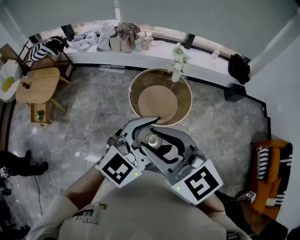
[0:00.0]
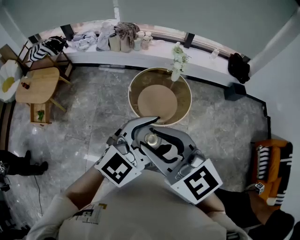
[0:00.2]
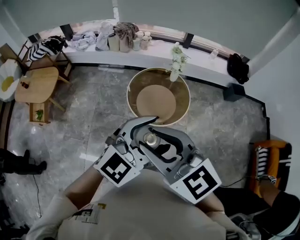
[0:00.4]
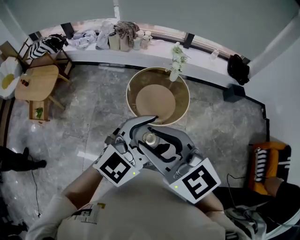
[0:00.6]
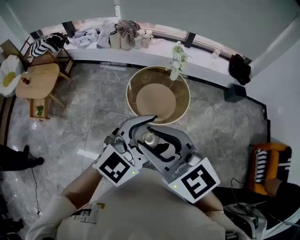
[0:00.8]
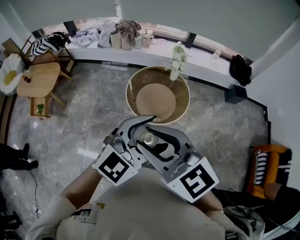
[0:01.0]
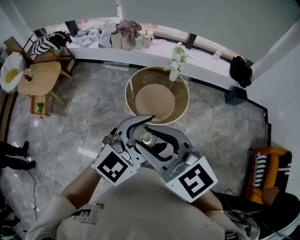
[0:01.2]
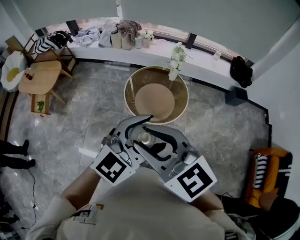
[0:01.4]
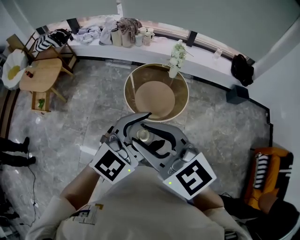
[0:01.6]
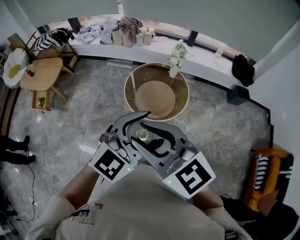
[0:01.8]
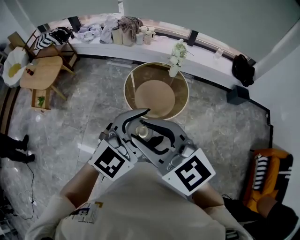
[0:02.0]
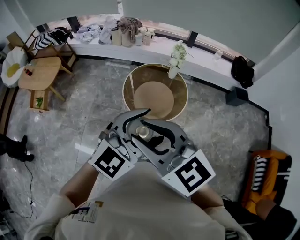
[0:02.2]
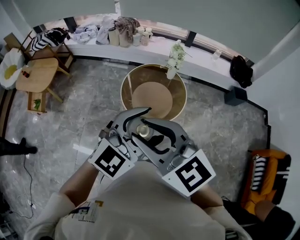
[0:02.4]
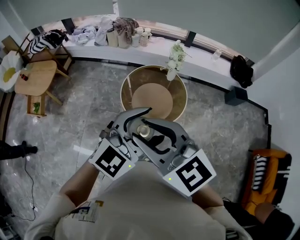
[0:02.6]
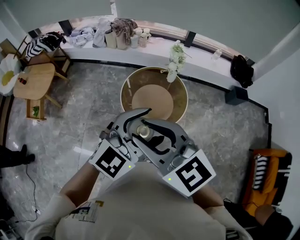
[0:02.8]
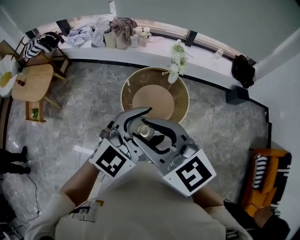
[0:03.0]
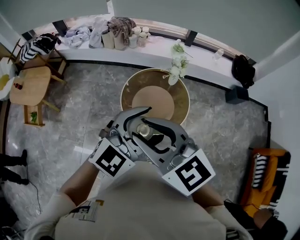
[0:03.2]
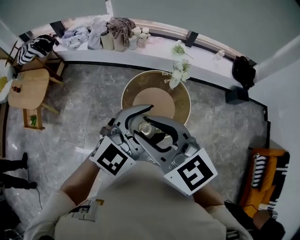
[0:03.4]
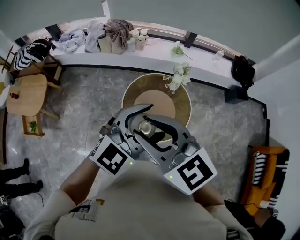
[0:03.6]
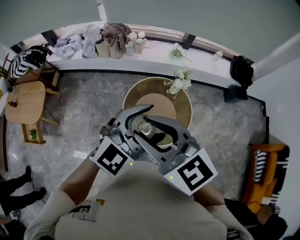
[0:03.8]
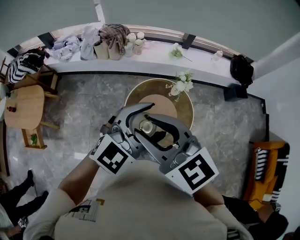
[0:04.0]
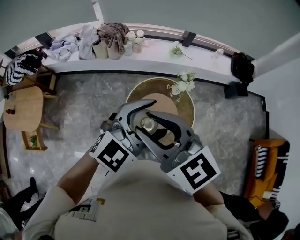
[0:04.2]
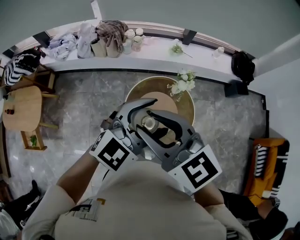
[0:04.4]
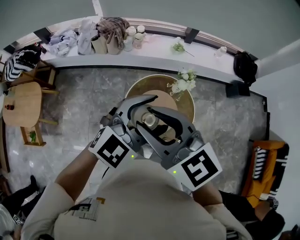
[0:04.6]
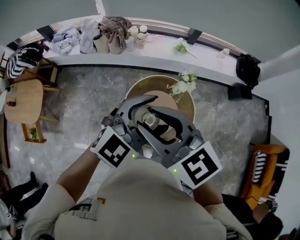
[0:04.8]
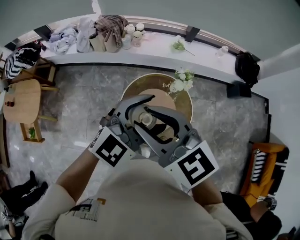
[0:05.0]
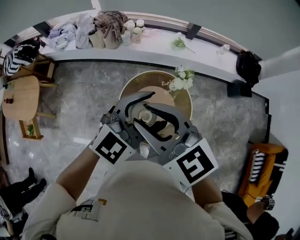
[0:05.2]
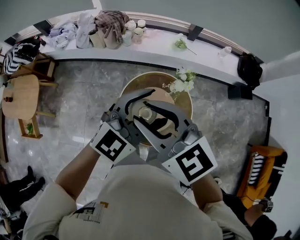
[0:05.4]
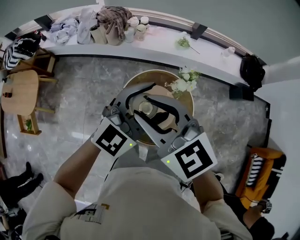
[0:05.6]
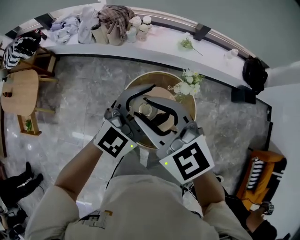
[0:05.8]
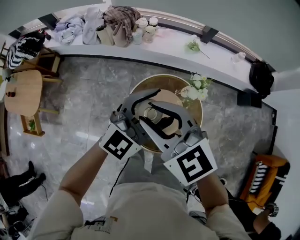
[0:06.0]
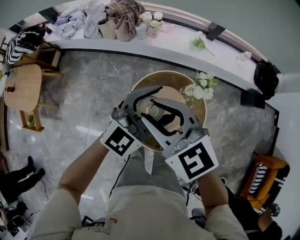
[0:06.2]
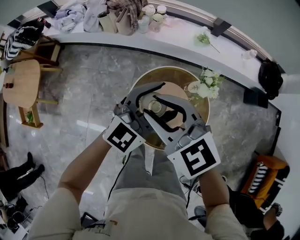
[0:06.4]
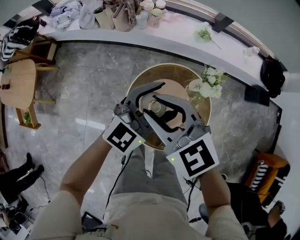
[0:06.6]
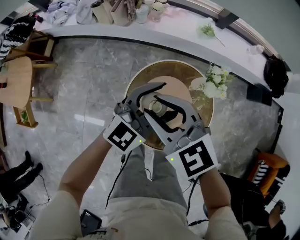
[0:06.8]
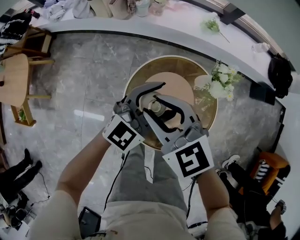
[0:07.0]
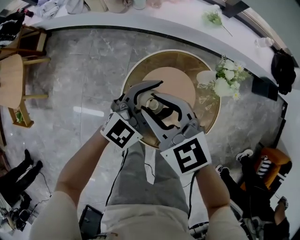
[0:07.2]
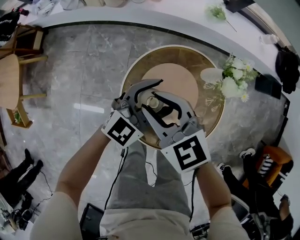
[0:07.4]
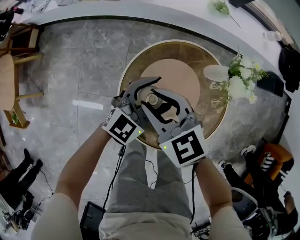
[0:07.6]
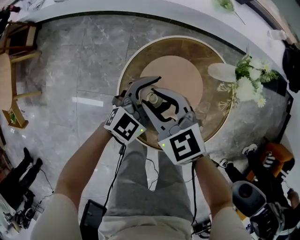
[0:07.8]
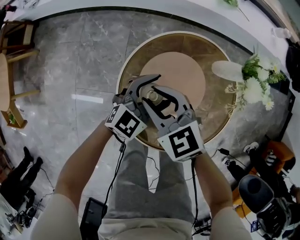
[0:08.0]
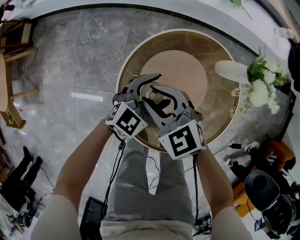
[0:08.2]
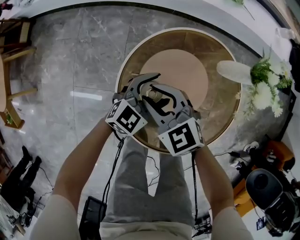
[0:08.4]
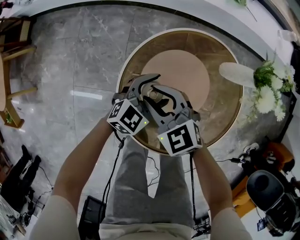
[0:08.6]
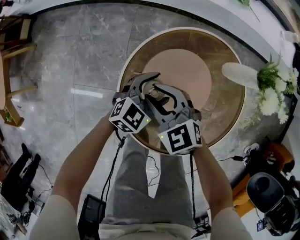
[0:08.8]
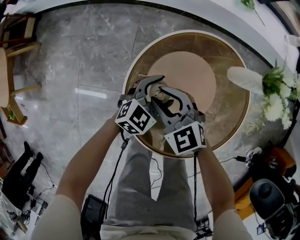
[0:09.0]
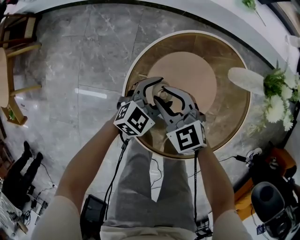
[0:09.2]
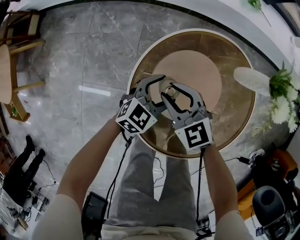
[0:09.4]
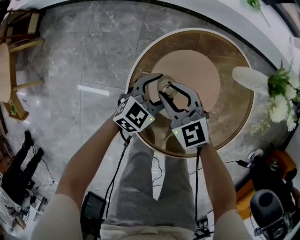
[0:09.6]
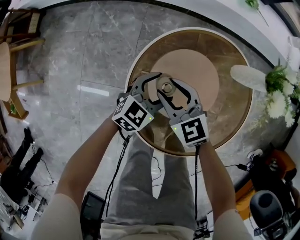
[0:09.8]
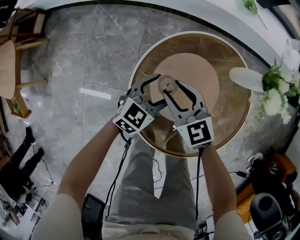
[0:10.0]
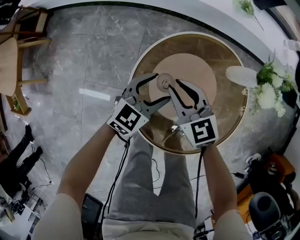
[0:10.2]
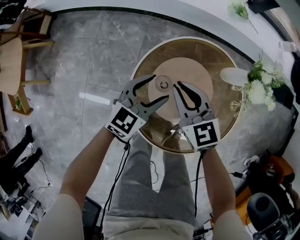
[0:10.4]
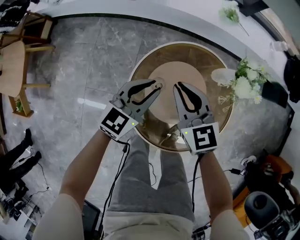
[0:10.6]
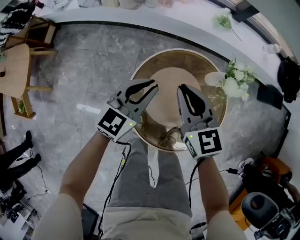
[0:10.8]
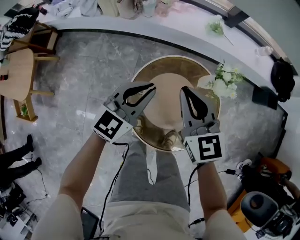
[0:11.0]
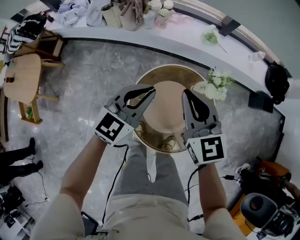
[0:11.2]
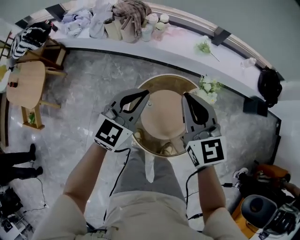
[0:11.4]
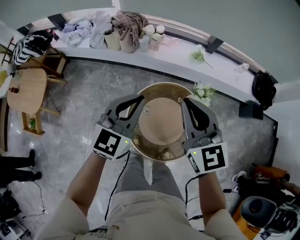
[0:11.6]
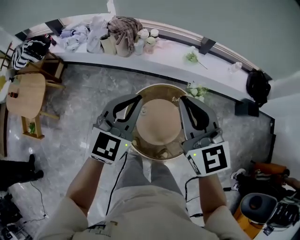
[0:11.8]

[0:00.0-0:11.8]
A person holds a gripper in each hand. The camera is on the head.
0:00.0 to 0:01.4: The two grippers go approximately 10 cm to the right.
0:01.4 to 0:03.0: The two grippers go some 15 cm forward.
0:03.0 to 0:04.4: Both grippers travel together forward and to the left, roughly 25 cm.
0:04.4 to 0:06.0: The grippers both shift forward and downward by approximately 20 cm.
0:06.0 to 0:07.4: The grippers both shift downward by some 30 cm.
0:07.4 to 0:08.8: The two grippers go about 25 cm downward. The left gripper swivels some 20 degrees.
0:08.8 to 0:10.4: Both grippers move upward, about 10 cm. The right gripper turns by approximately 20 degrees, and closes.
0:10.4 to 0:11.8: The grippers both shift upward by approximately 50 cm. The left gripper swivels approximately 20 degrees, and closes up. Meanwhile the right gripper swivels approximately 20 degrees.

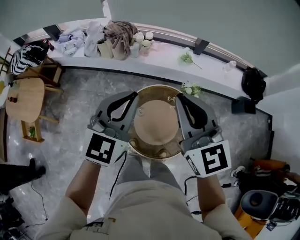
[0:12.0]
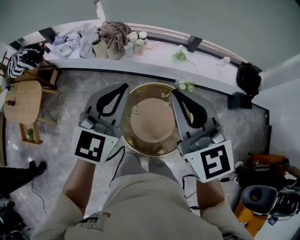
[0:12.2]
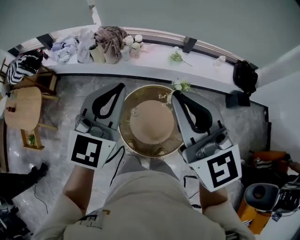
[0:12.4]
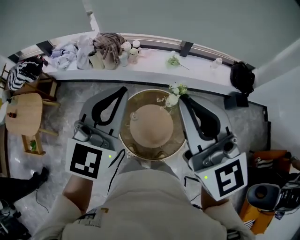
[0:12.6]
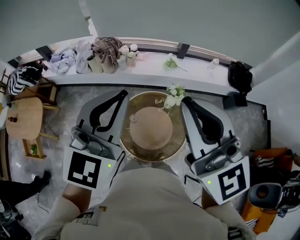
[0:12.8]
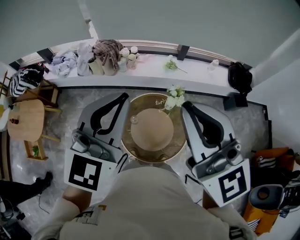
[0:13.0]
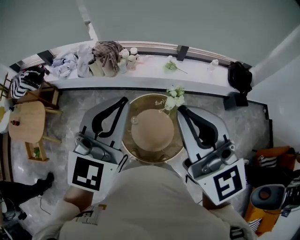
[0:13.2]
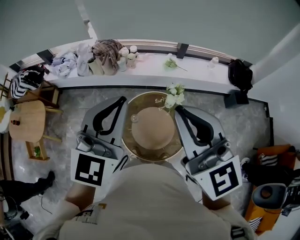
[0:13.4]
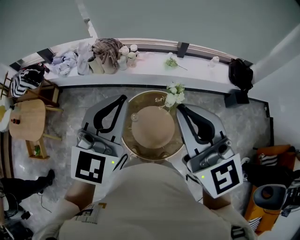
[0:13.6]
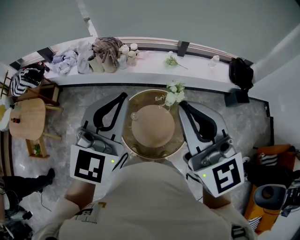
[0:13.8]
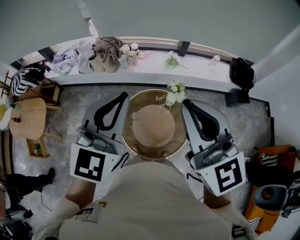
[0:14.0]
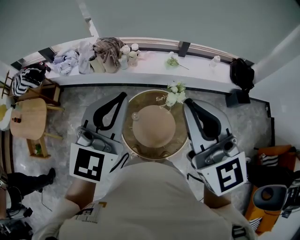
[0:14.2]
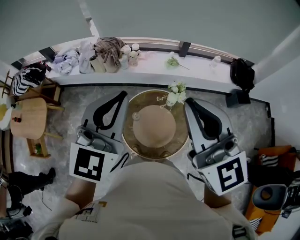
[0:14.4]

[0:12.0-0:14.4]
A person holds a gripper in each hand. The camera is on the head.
0:12.0 to 0:13.2: Both grippers travel together upward and backward, some 15 cm.
0:13.2 to 0:14.4: The grippers stay close to where they were, moving slightly.

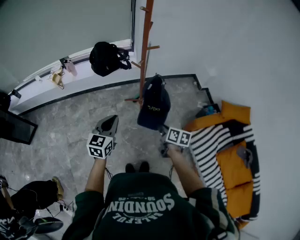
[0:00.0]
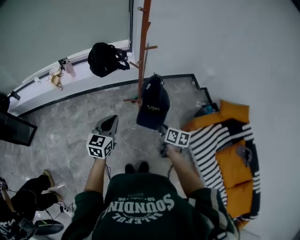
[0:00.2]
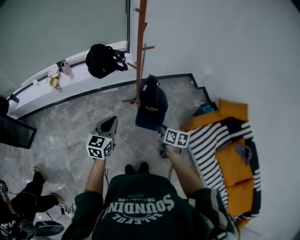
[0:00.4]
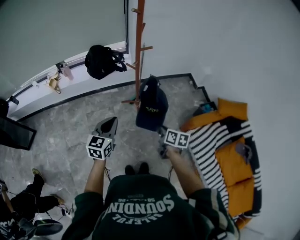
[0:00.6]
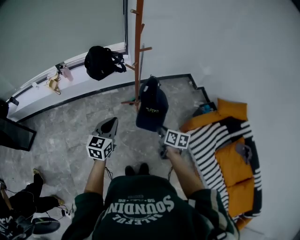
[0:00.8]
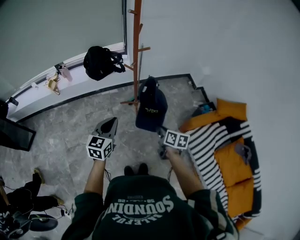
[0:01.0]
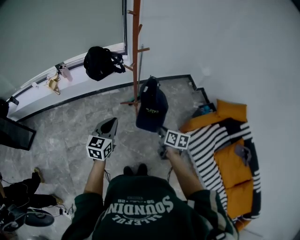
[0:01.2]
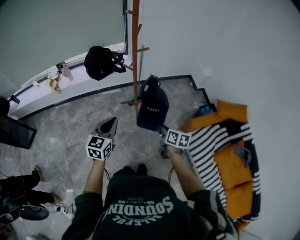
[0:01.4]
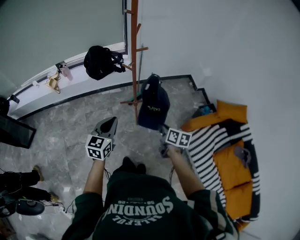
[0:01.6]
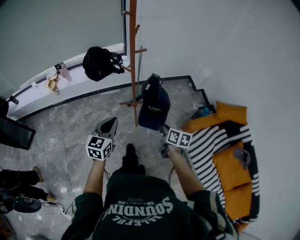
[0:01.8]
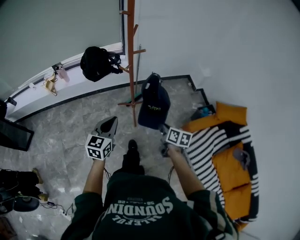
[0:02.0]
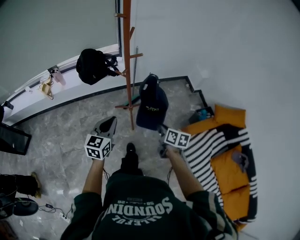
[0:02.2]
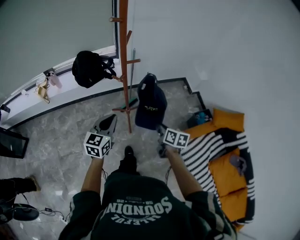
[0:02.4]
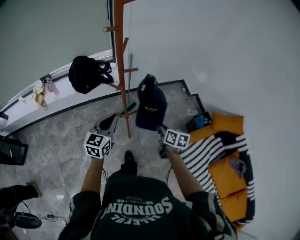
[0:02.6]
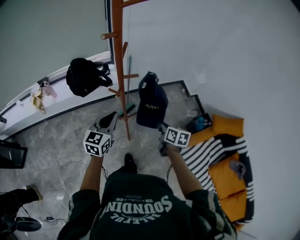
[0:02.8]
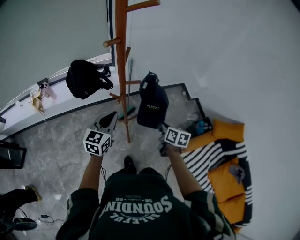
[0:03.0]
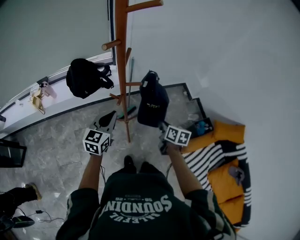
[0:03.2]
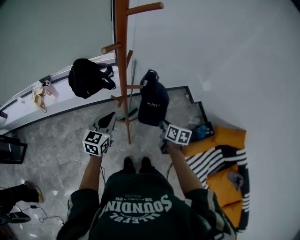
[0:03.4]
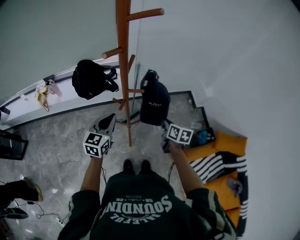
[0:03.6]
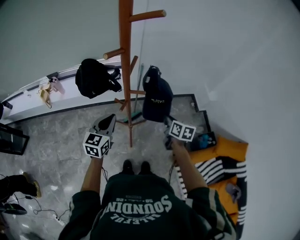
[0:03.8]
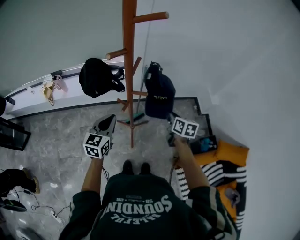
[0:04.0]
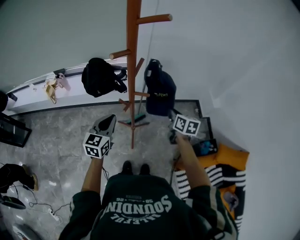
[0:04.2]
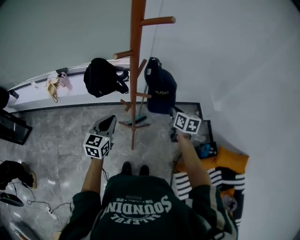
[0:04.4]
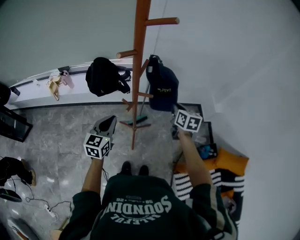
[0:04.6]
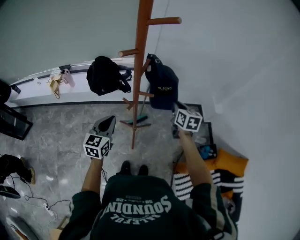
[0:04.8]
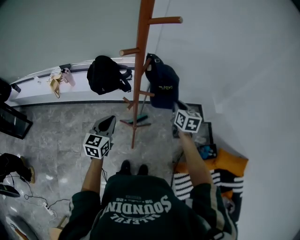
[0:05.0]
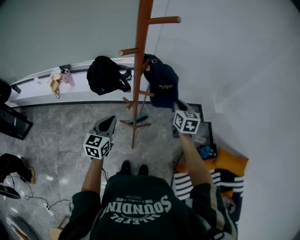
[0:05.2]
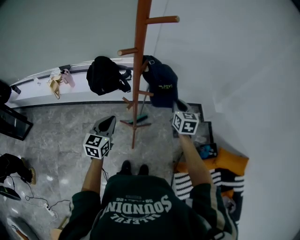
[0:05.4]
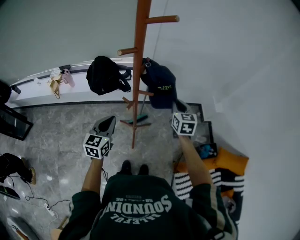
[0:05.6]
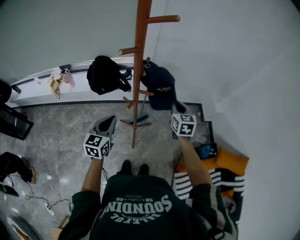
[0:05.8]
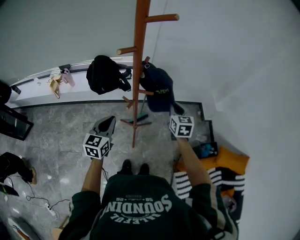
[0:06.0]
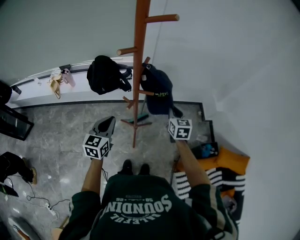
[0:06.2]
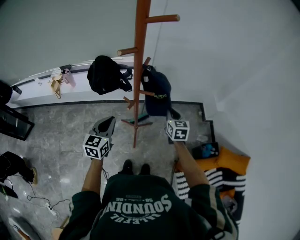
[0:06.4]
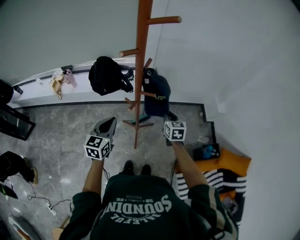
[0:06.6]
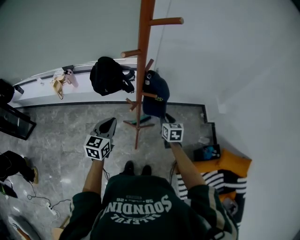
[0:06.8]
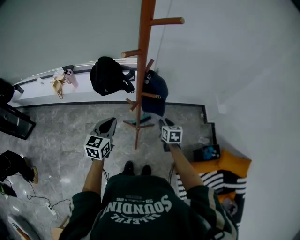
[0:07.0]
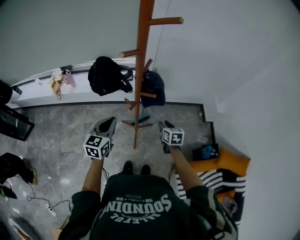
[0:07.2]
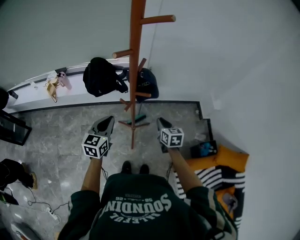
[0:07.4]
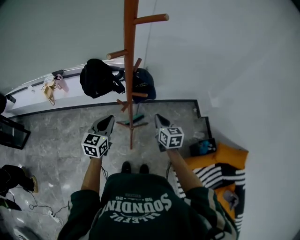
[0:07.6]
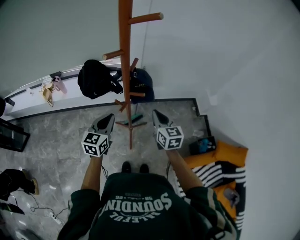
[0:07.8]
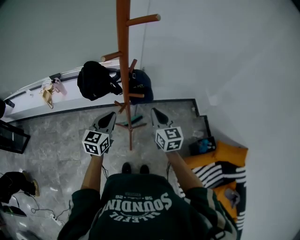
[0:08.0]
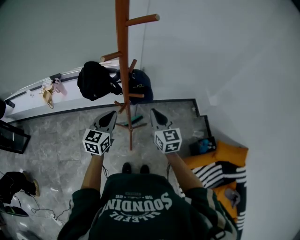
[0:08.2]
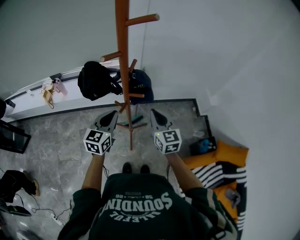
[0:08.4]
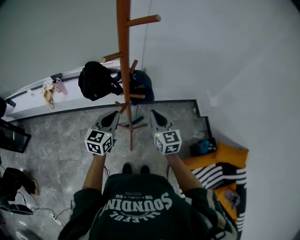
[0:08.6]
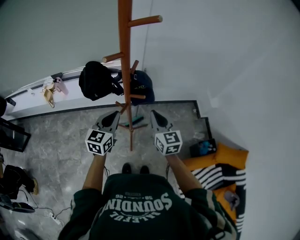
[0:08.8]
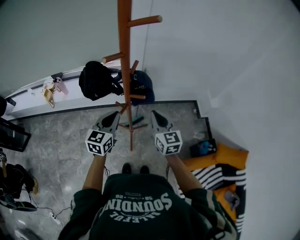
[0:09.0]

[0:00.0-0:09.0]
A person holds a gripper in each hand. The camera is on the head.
0:00.0 to 0:01.6: The right gripper is displaced to the right by roughly 5 cm.
0:01.6 to 0:03.0: Both grippers move forward, roughly 25 cm.
0:03.0 to 0:04.4: The right gripper heads forward and upward, covering approximately 20 cm, and rotates approximately 20 degrees.
0:04.4 to 0:06.0: The right gripper changes its angle by about 20 degrees.
0:06.0 to 0:07.6: The right gripper travels backward by roughly 5 cm, travels downward and back again, roughly 15 cm each way, and opens, then closes again.
0:07.6 to 0:09.0: The right gripper heads upward, covering about 10 cm. Meanwhile the left gripper shifts by roughly 5 cm.
